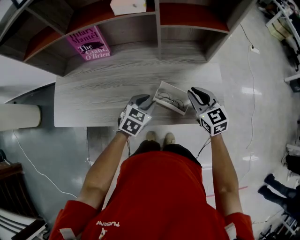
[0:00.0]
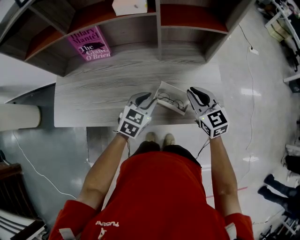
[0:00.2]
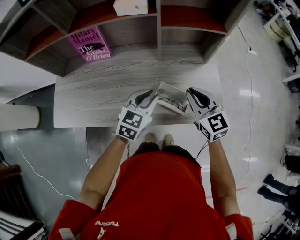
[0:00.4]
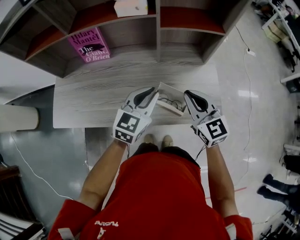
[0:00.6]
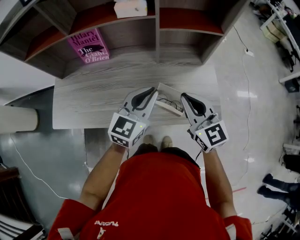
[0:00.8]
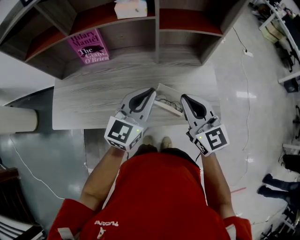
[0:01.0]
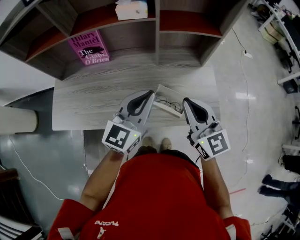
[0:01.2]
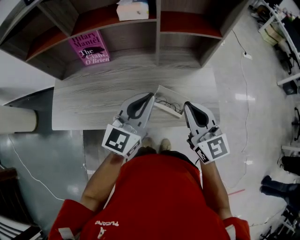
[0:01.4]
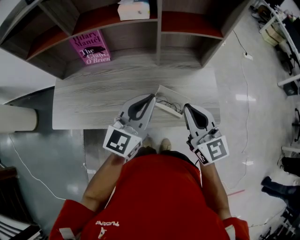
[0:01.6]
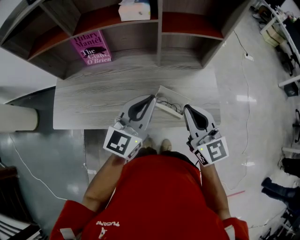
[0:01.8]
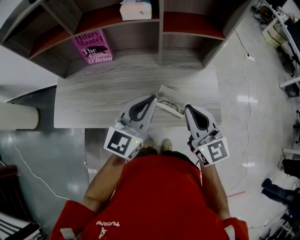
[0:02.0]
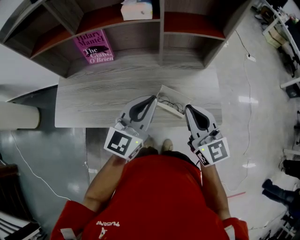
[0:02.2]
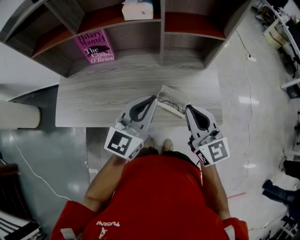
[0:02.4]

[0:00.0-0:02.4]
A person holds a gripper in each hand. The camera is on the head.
0:00.0 to 0:01.2: The left gripper heads upward, covering roughly 25 cm, tips its fingers upward by about 40 degrees, and closes its fingers. Meanwhile the right gripper moves upward and backward, roughly 15 cm, and turns by about 20 degrees.
0:01.2 to 0:02.4: The grippers stay close to where they were, moving slightly.

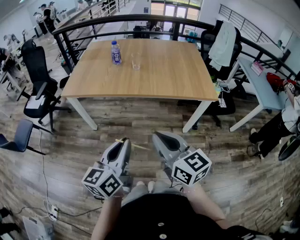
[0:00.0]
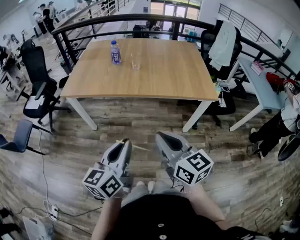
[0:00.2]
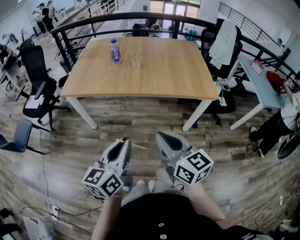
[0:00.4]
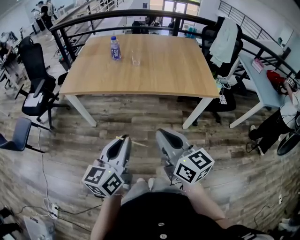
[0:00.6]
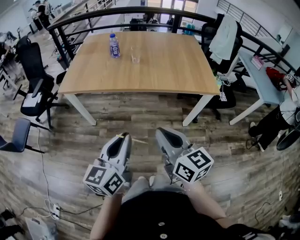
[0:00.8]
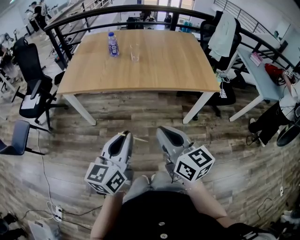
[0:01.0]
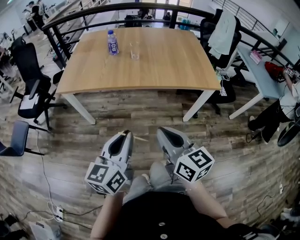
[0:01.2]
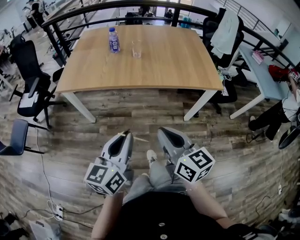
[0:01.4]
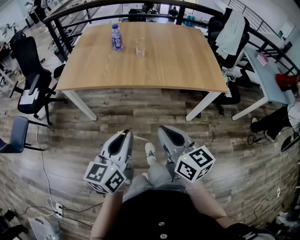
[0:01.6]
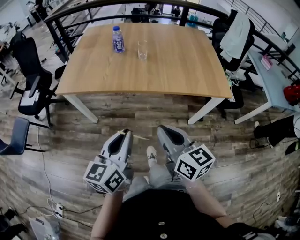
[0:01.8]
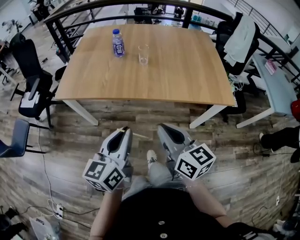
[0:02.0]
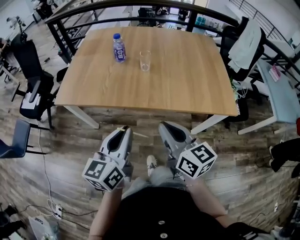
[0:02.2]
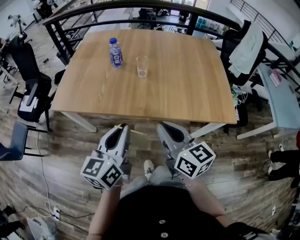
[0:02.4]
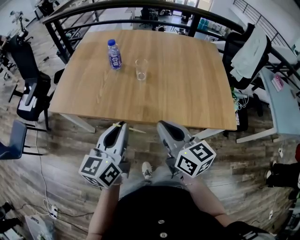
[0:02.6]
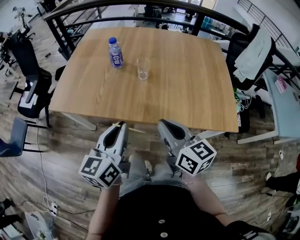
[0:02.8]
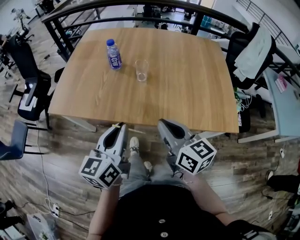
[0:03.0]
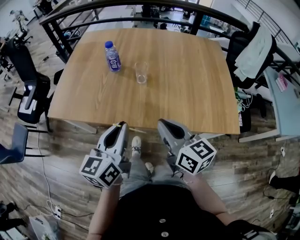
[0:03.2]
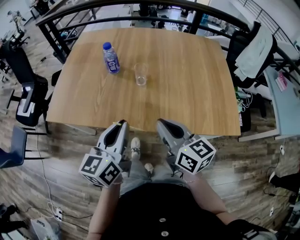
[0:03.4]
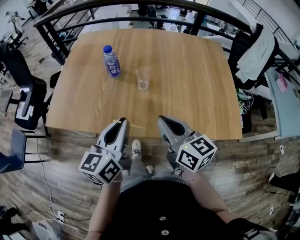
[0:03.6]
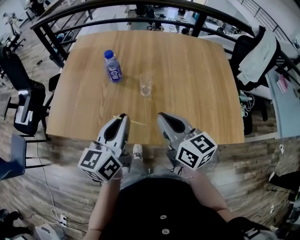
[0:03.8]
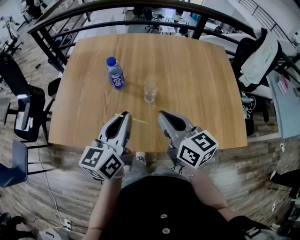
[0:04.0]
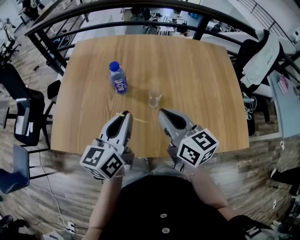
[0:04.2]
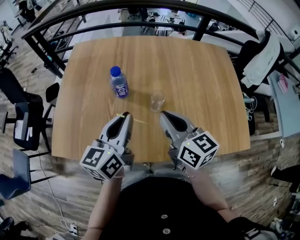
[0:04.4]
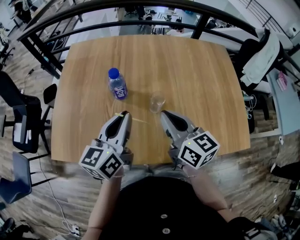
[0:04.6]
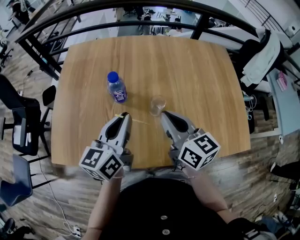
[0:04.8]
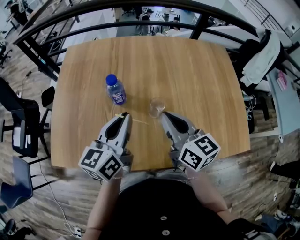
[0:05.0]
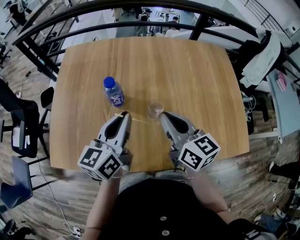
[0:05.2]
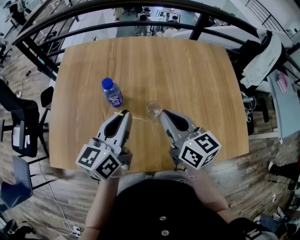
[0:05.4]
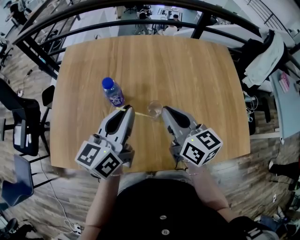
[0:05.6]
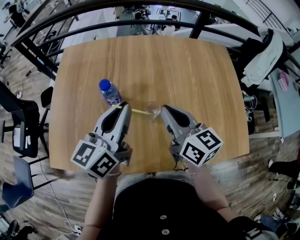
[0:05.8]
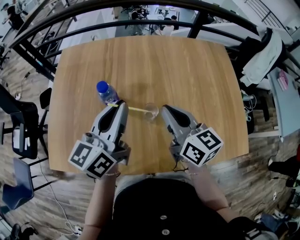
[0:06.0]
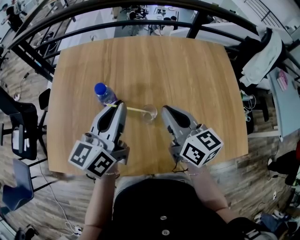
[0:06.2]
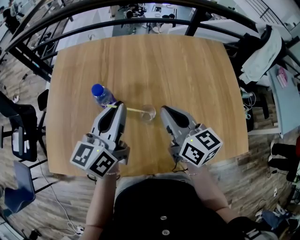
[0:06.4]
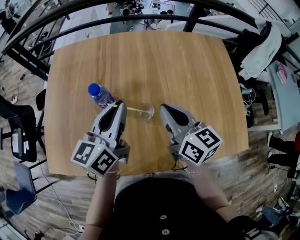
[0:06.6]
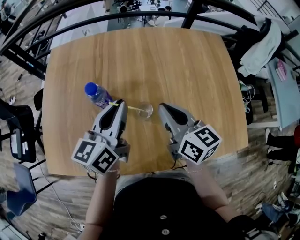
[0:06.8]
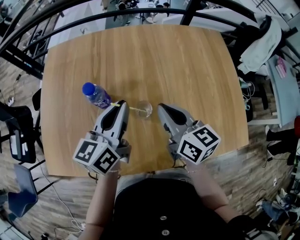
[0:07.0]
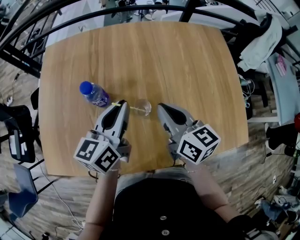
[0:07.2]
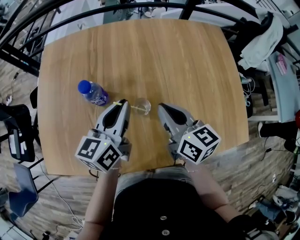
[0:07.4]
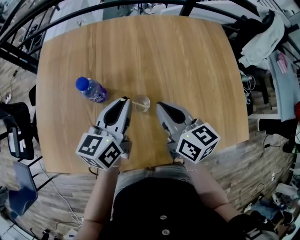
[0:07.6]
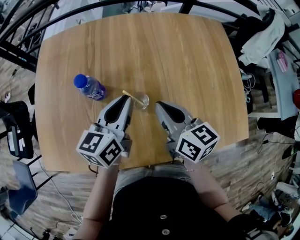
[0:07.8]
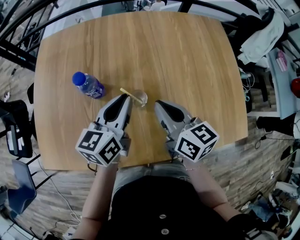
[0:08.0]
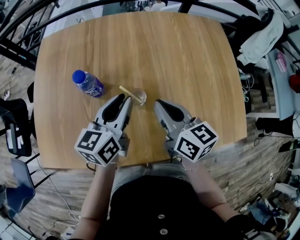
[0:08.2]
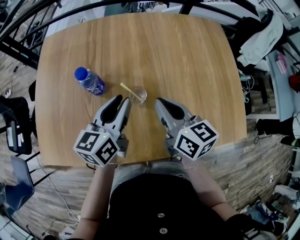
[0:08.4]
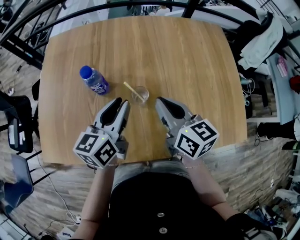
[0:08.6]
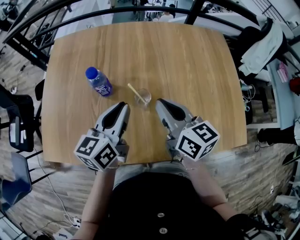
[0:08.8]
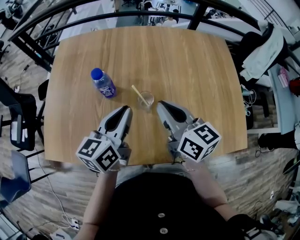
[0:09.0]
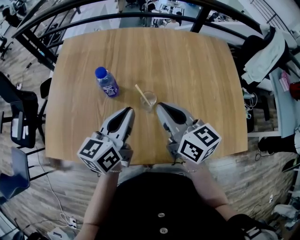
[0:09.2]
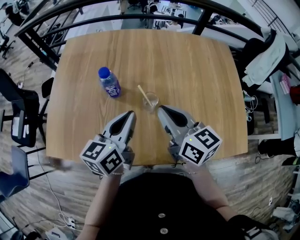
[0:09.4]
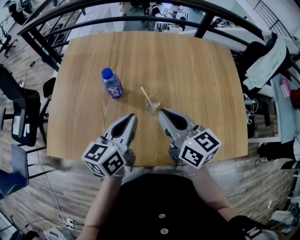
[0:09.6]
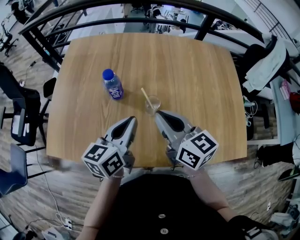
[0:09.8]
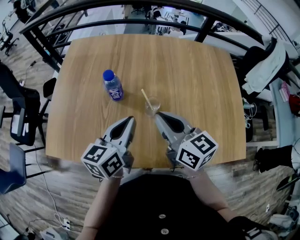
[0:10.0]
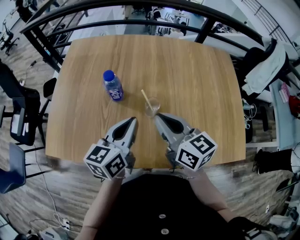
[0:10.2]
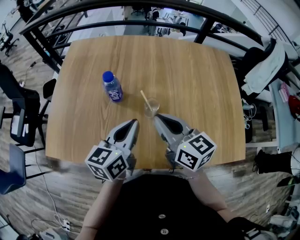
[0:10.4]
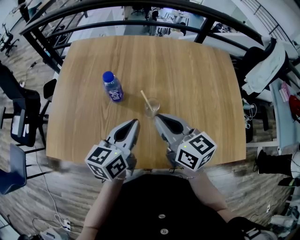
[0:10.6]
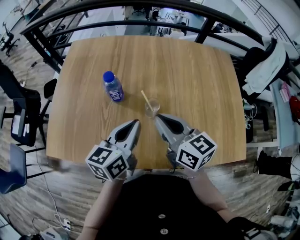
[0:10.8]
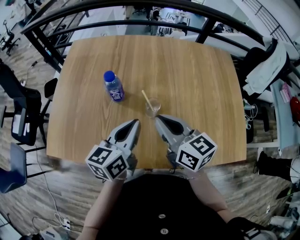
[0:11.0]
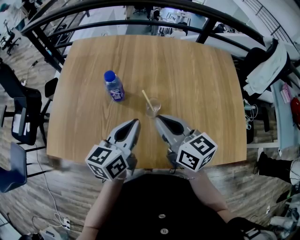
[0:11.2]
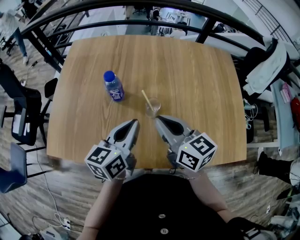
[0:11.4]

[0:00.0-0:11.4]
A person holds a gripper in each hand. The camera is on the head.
0:00.0 to 0:01.4: The right gripper shifts by some 5 cm. The left gripper changes place by roughly 5 cm.
0:01.4 to 0:02.8: Both grippers move forward, roughly 30 cm.
0:02.8 to 0:04.2: The two grippers go roughly 25 cm forward.
0:04.2 to 0:05.6: Both grippers travel together forward, about 10 cm.
0:05.6 to 0:07.2: The left gripper travels downward by some 5 cm, while the right gripper shifts by roughly 5 cm.
0:07.2 to 0:08.6: The grippers stay close to where they were, moving slightly.
0:08.6 to 0:10.0: The left gripper moves roughly 5 cm, and closes, while the right gripper ends up about 5 cm from where it was.
0:10.0 to 0:11.4: There are only small adjustments of the grippers.

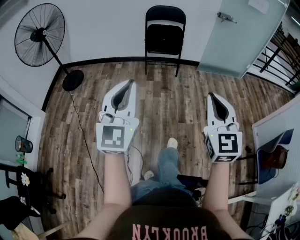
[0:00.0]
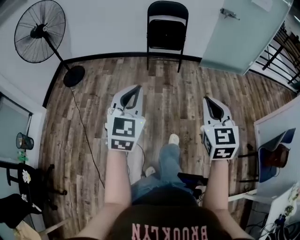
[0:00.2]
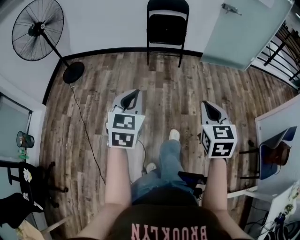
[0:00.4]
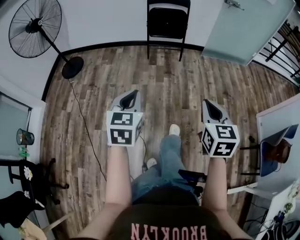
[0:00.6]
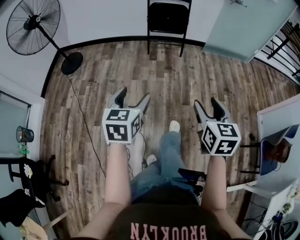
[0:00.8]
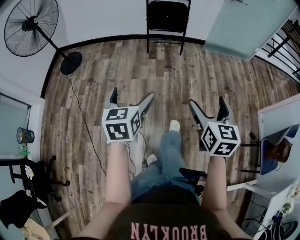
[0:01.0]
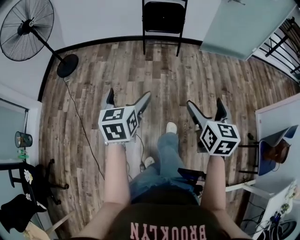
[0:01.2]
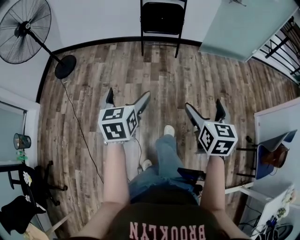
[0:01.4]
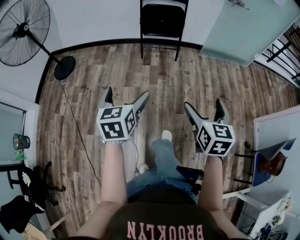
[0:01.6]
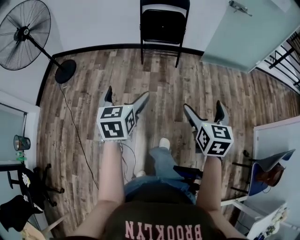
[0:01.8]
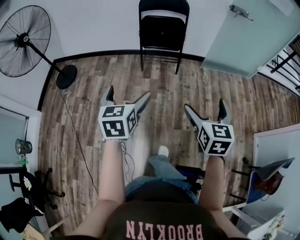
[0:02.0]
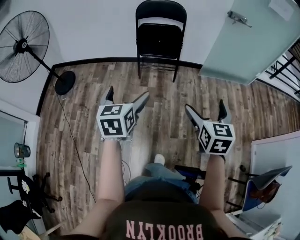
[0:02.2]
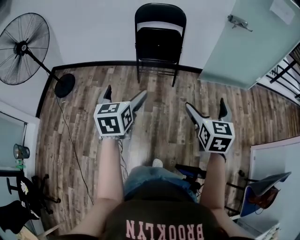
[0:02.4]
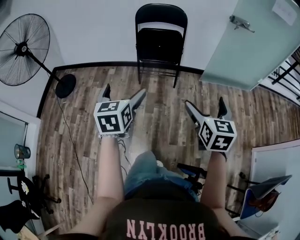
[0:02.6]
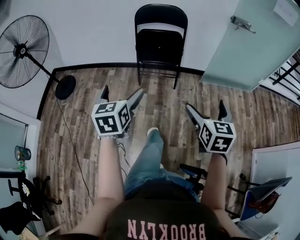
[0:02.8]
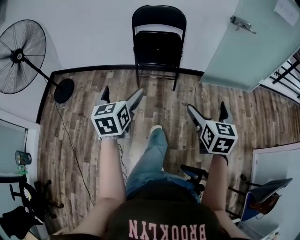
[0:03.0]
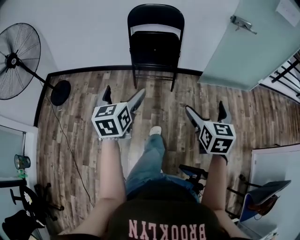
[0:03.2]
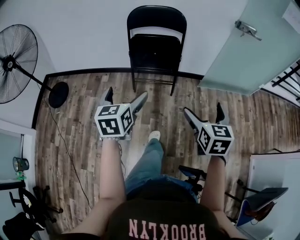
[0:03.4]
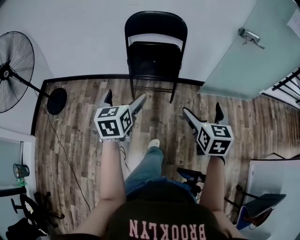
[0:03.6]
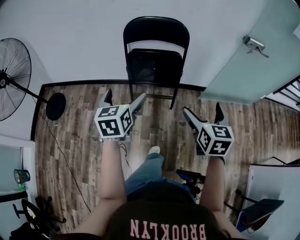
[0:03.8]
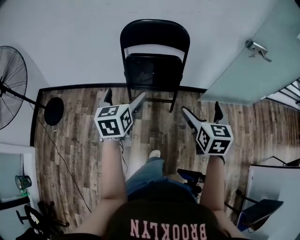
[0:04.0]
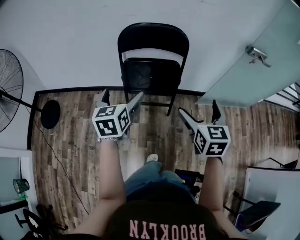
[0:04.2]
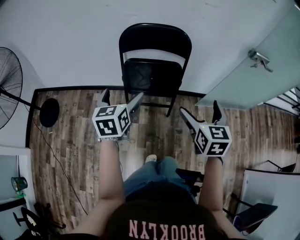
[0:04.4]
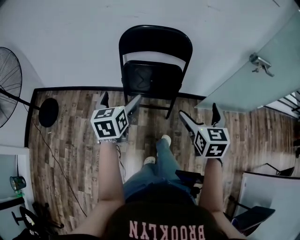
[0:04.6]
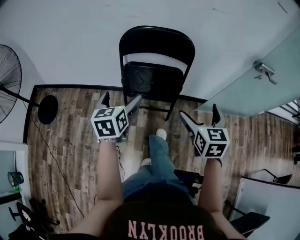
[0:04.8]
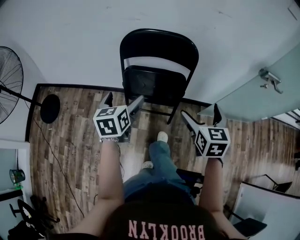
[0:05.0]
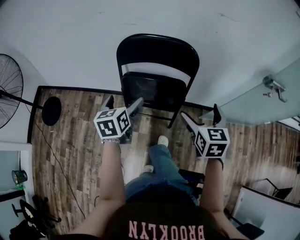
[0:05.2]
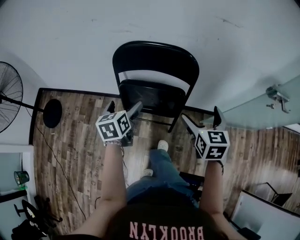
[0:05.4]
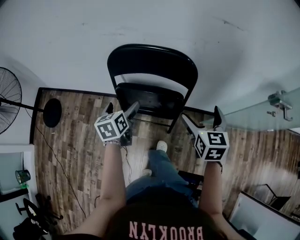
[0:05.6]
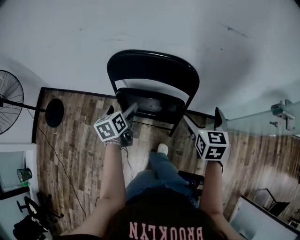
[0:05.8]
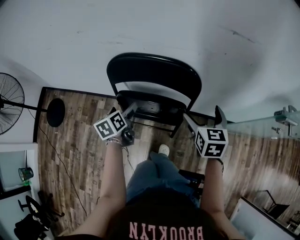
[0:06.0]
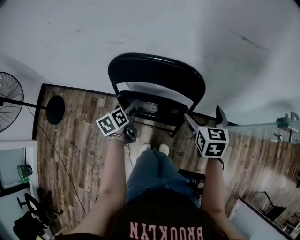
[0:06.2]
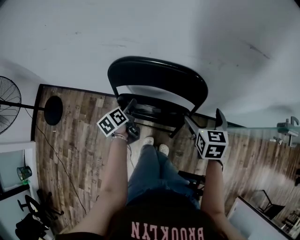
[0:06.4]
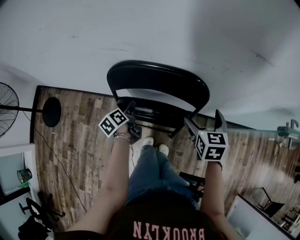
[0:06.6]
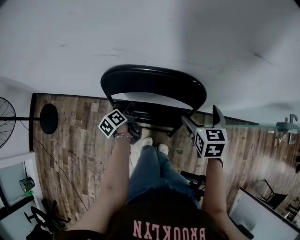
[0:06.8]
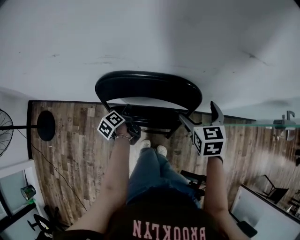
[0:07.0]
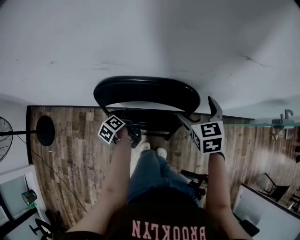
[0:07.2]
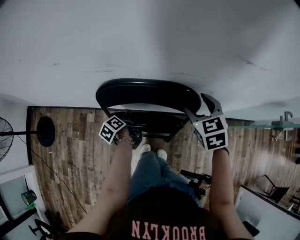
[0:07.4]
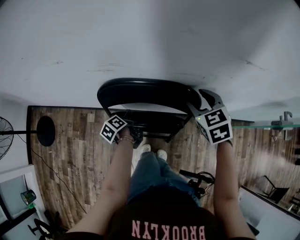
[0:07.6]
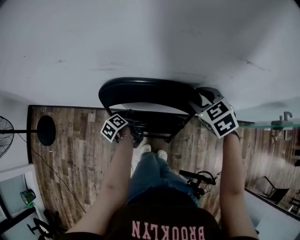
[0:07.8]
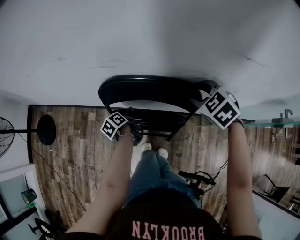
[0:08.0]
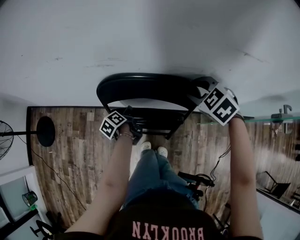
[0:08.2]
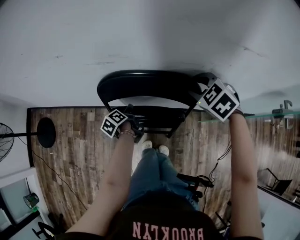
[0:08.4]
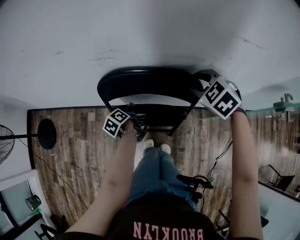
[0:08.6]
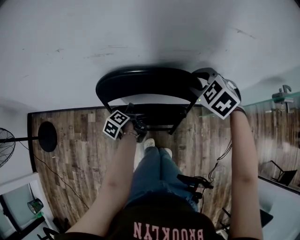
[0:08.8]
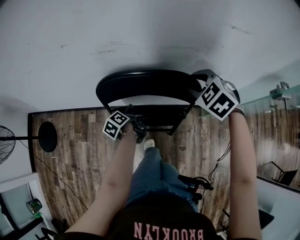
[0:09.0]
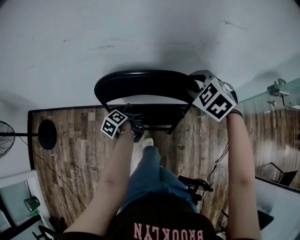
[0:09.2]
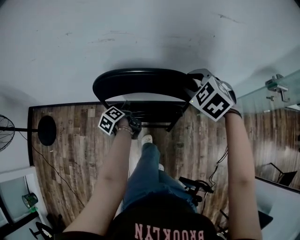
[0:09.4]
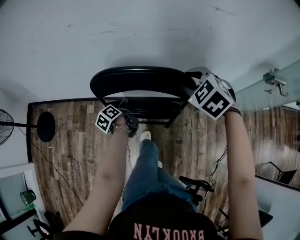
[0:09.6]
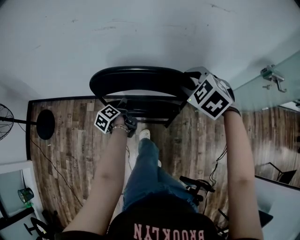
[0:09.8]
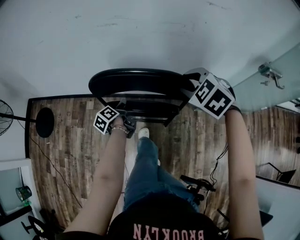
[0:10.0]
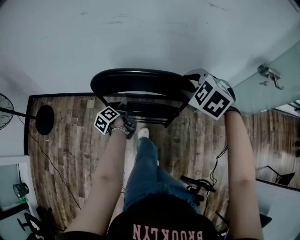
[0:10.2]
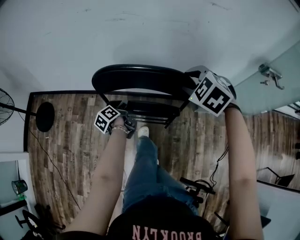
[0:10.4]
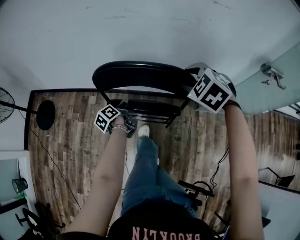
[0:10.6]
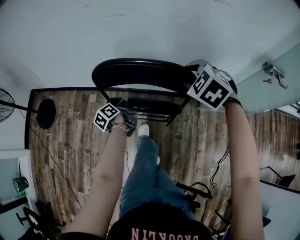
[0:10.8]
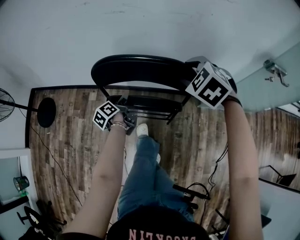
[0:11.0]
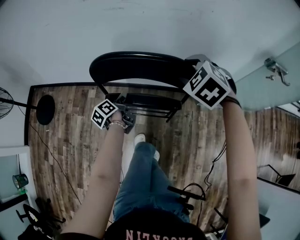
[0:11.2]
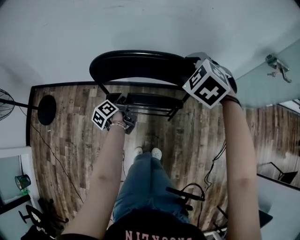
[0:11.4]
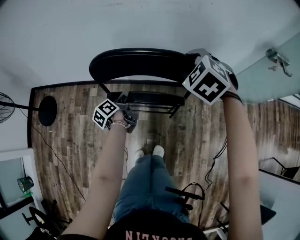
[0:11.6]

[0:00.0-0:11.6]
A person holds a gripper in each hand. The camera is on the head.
0:00.0 to 0:01.4: The grippers both shift downward and forward by approximately 20 cm. The left gripper angles its fingers downward, by roughly 30 degrees, and opens its fingers. Meanwhile the right gripper swivels approximately 30 degrees, and opens.
0:01.4 to 0:02.8: The two grippers go roughly 35 cm forward.
0:02.8 to 0:04.4: The pair of grippers is taken forward, roughly 40 cm.
0:04.4 to 0:05.8: The right gripper shifts roughly 30 cm forward, while the left gripper heads forward and downward, covering roughly 25 cm, and rotates some 30 degrees.
0:05.8 to 0:07.2: The right gripper shifts about 15 cm forward. Meanwhile the left gripper travels downward and forward by about 15 cm, twists some 40 degrees counterclockwise, seen from behind, and closes.
0:07.2 to 0:08.8: The right gripper turns by some 40 degrees, and closes.
0:08.8 to 0:10.2: The two grippers go approximately 20 cm backward.
0:10.2 to 0:11.6: The grippers move only a little.
